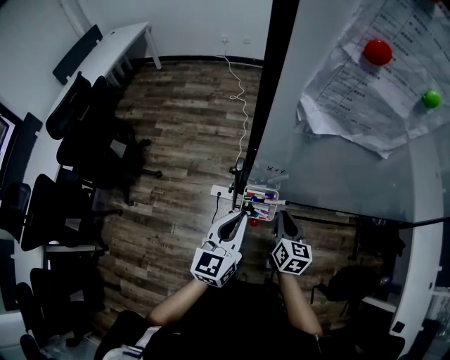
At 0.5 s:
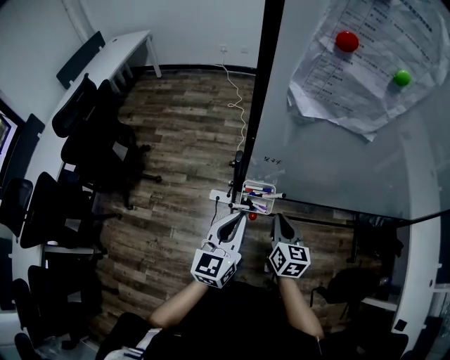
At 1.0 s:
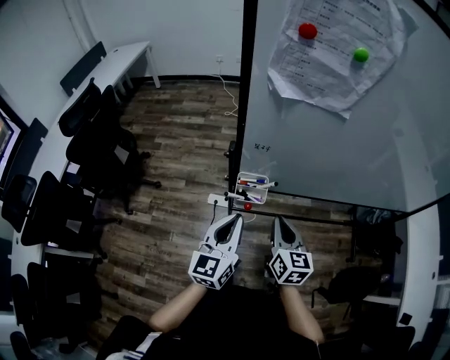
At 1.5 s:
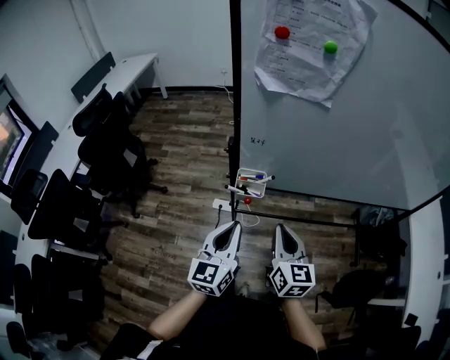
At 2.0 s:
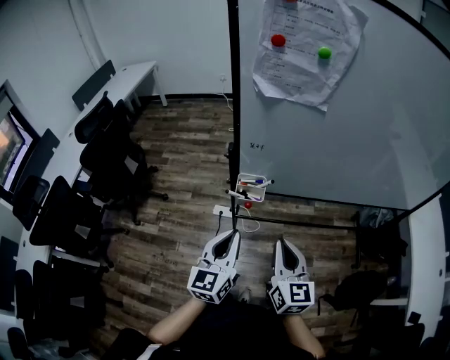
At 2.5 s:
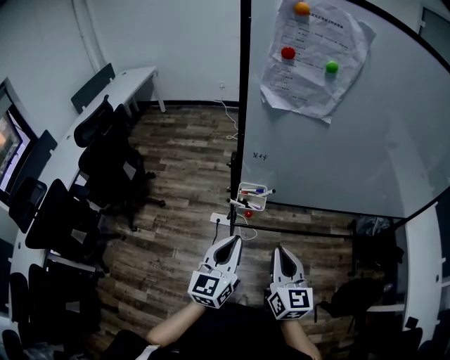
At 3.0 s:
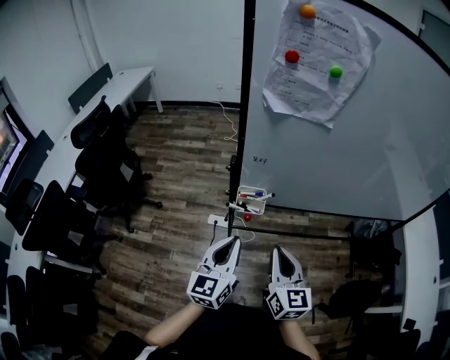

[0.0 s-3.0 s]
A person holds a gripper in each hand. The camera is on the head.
0.0 to 1.5 s: The right gripper goes approximately 20 cm backward and upward, while the left gripper is displaced backward by approximately 15 cm.
1.5 to 3.0 s: The grippers make only small movements.

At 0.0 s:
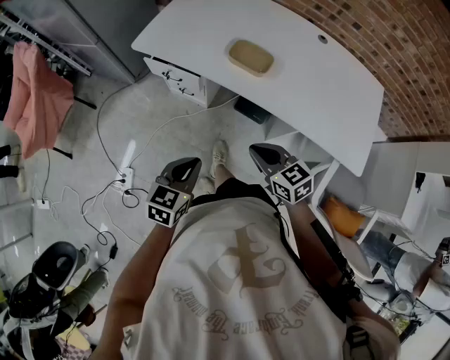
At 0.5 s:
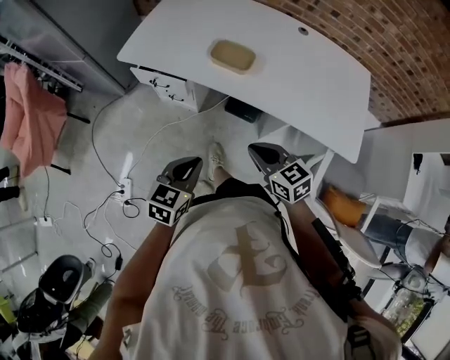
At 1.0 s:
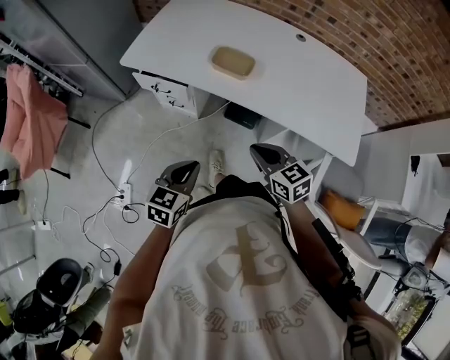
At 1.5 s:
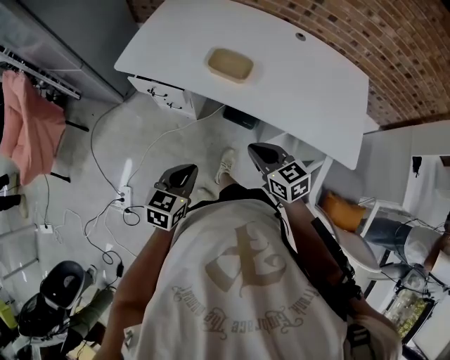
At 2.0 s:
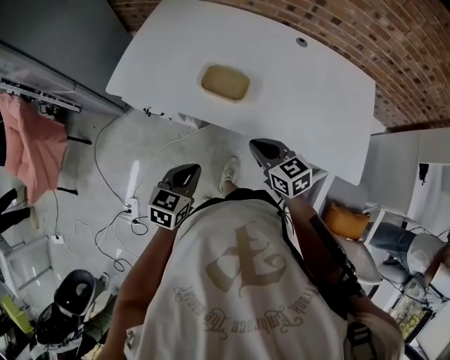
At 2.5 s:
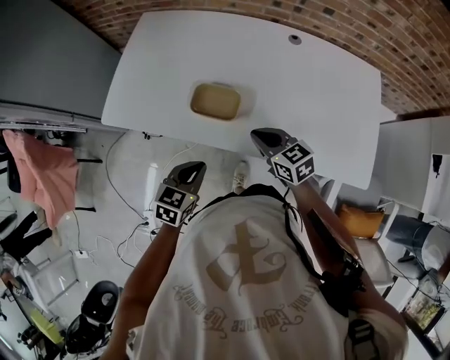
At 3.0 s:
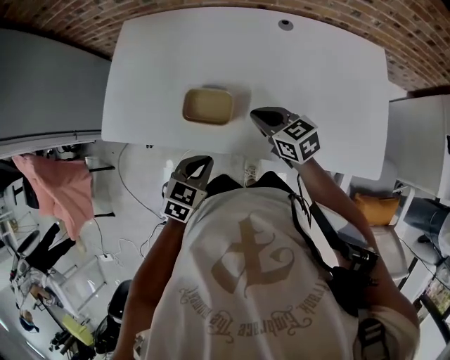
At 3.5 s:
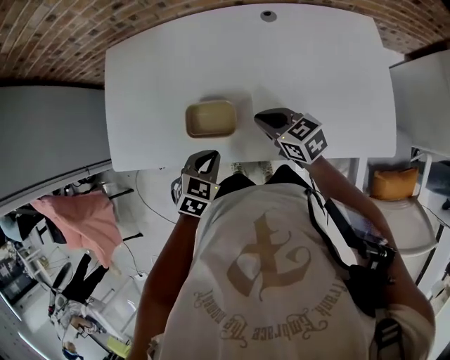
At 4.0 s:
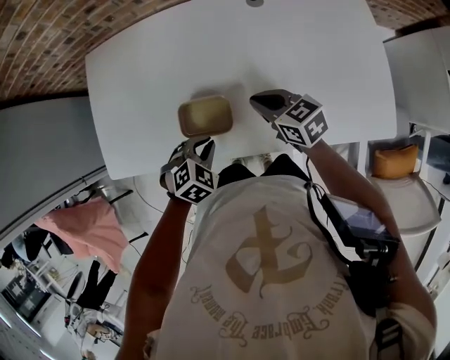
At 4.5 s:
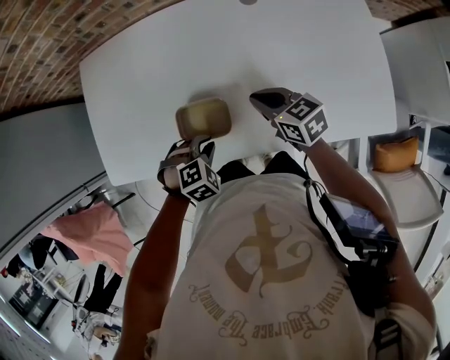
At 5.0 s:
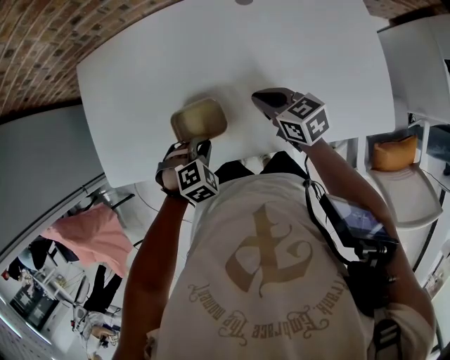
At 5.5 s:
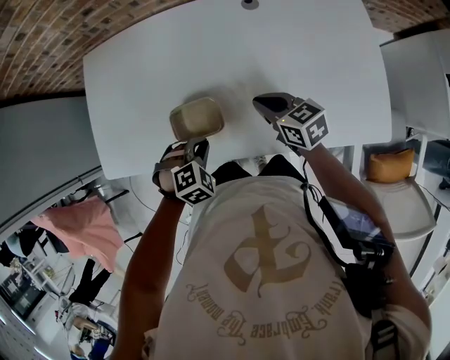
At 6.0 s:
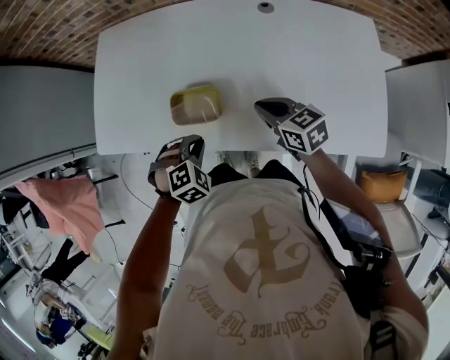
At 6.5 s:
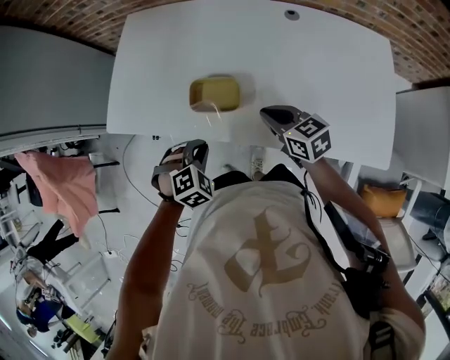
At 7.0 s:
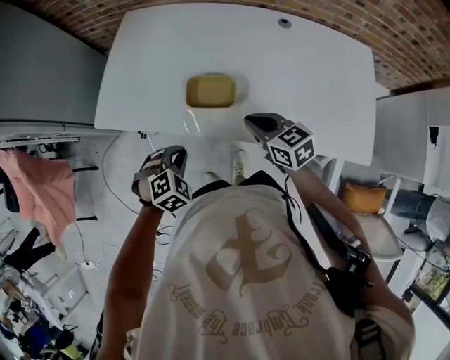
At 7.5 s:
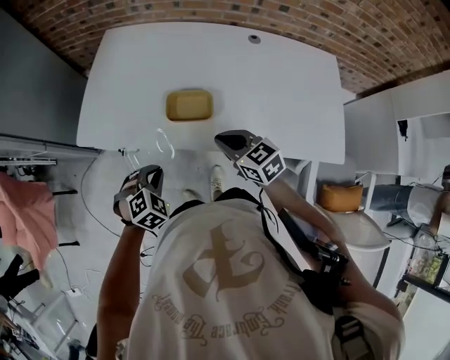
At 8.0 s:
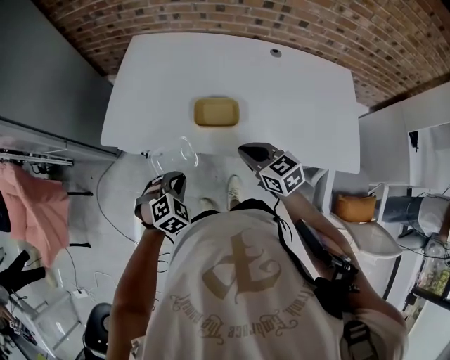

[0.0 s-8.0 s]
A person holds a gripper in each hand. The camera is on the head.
0.0 to 2.0 s: The grippers both shift forward and to the right by about 15 cm.
2.0 to 4.0 s: Both grippers move forward, approximately 20 cm. The left gripper rolls clockwise, seen from behind, by about 50 degrees.
4.0 to 6.0 s: The right gripper shifts by some 5 cm.
6.0 to 8.0 s: The grippers both shift to the left and backward by about 20 cm.

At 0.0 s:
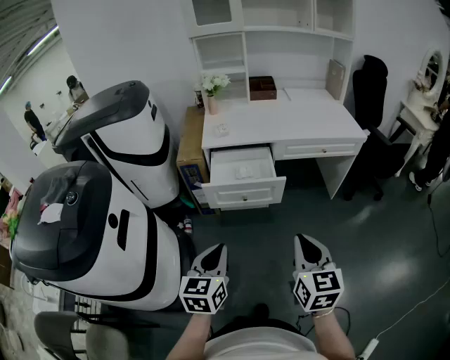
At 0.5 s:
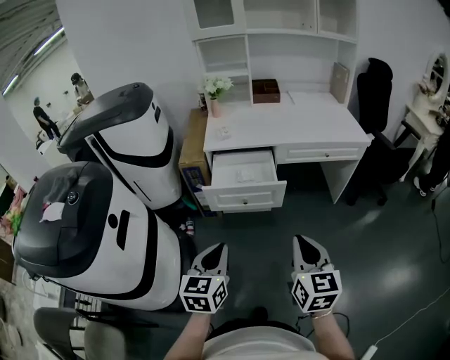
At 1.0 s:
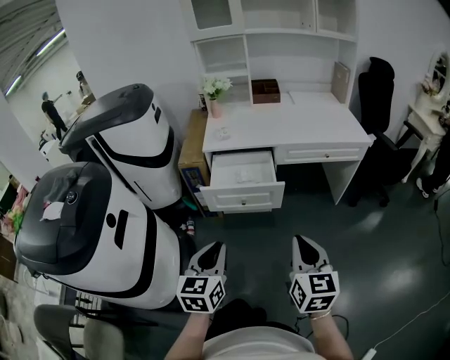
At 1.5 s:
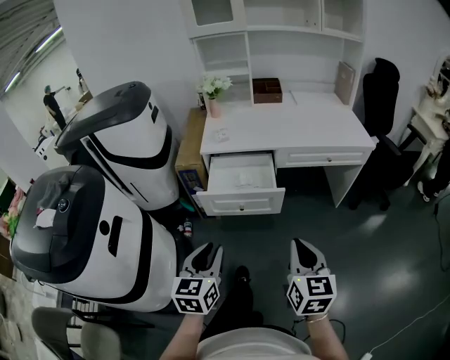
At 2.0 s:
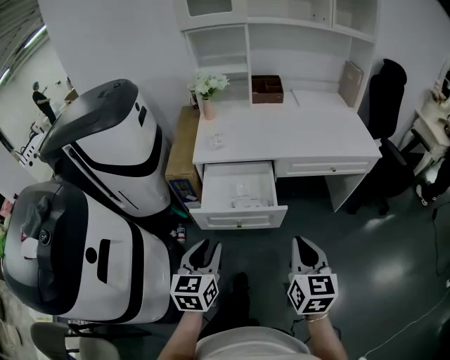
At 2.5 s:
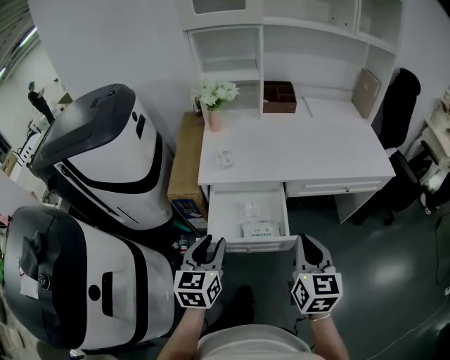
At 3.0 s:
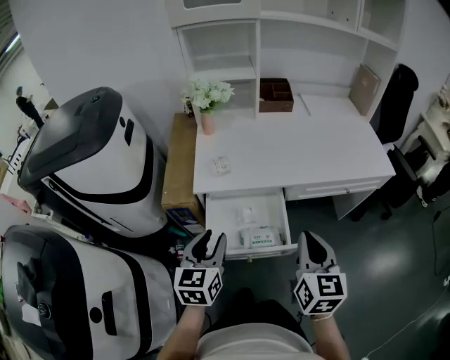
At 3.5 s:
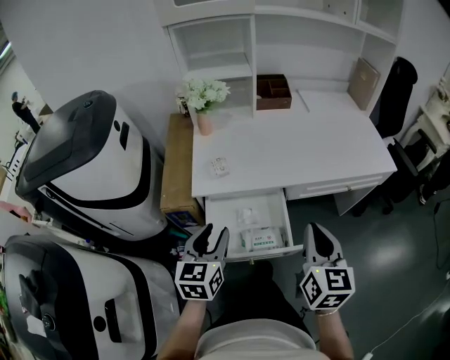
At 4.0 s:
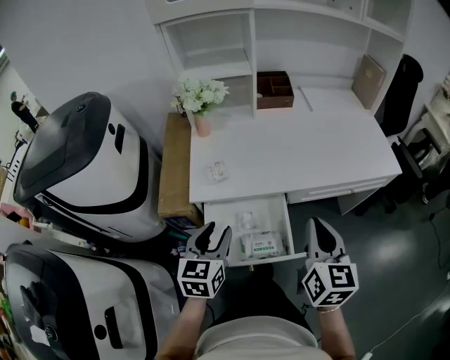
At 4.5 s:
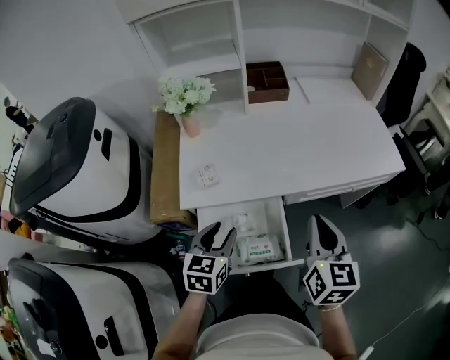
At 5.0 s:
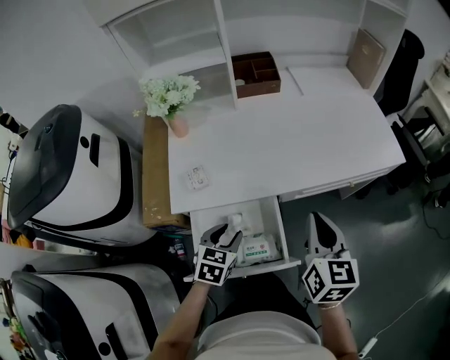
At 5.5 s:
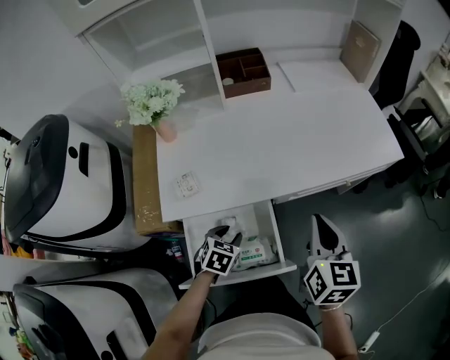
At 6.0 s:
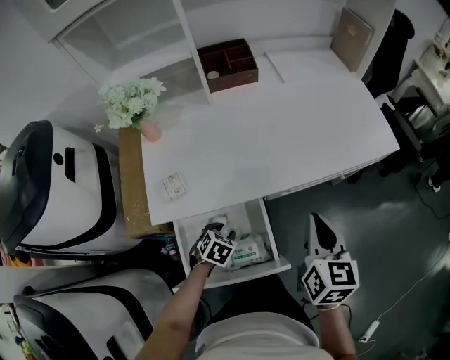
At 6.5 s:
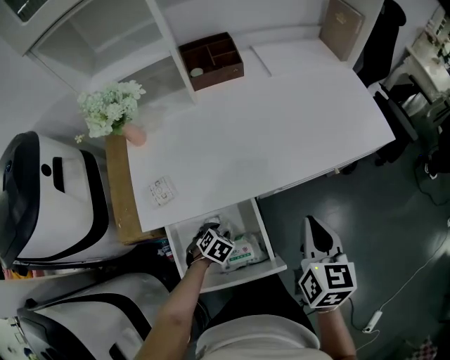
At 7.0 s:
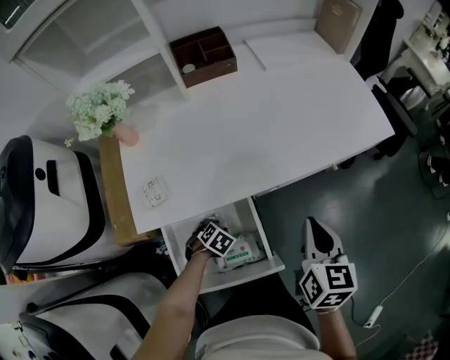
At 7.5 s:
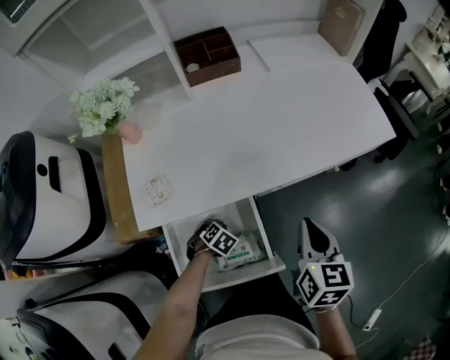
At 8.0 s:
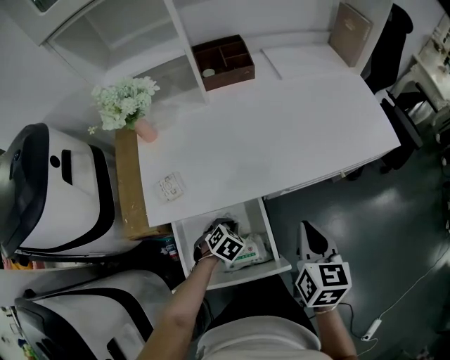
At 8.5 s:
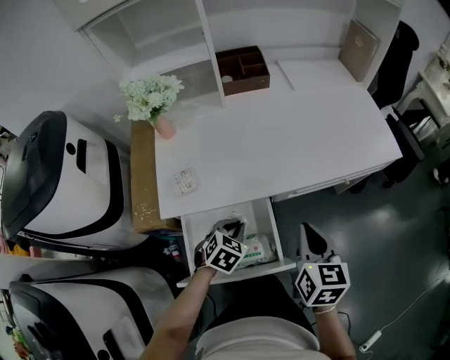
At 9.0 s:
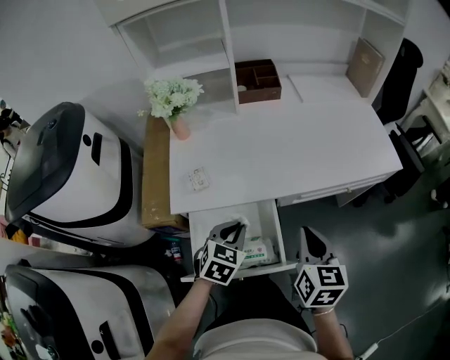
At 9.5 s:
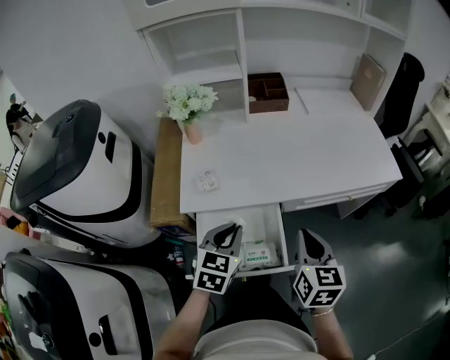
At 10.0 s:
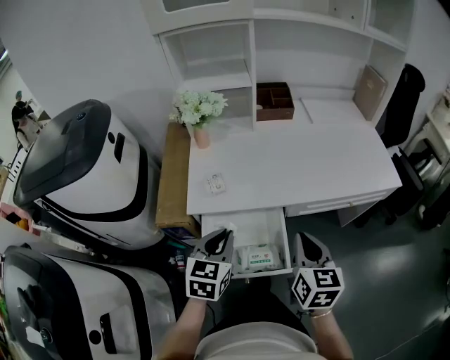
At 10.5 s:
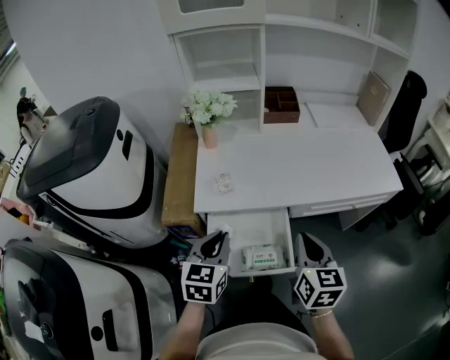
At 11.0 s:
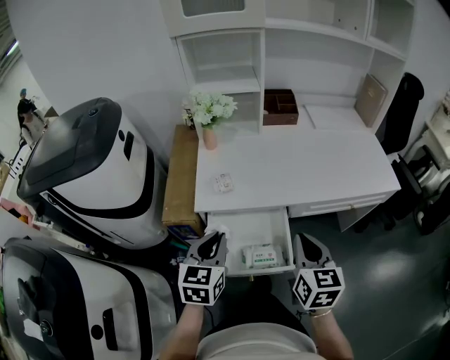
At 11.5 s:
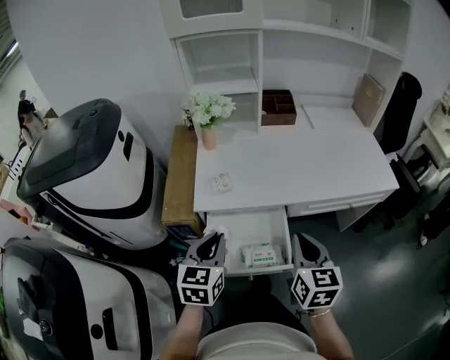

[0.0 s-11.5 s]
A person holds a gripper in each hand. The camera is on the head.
0.0 to 2.0 s: The two grippers go some 15 cm forward. The left gripper opens its fingers.
2.0 to 4.0 s: The two grippers go roughly 25 cm forward.
4.0 to 6.0 s: The left gripper moves downward, some 25 cm, and angles its fingers downward, by about 40 degrees, while the right gripper is displaced forward, to the right and downward by about 15 cm.
6.0 to 7.5 s: The left gripper is displaced downward by approximately 5 cm, and closes up.
7.5 to 9.5 s: The right gripper moves approximately 10 cm. Meanwhile the left gripper travels upward by some 30 cm, and points its fingers about 50 degrees further upward.
9.5 to 11.5 s: The left gripper is displaced to the left and backward by about 10 cm; the right gripper ends up about 5 cm from where it was.

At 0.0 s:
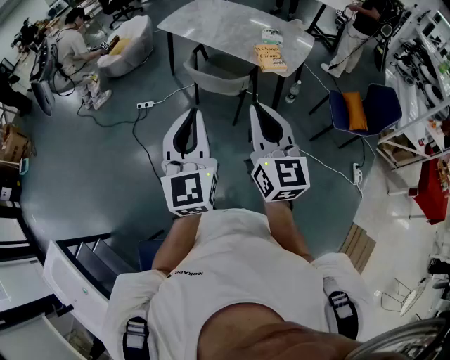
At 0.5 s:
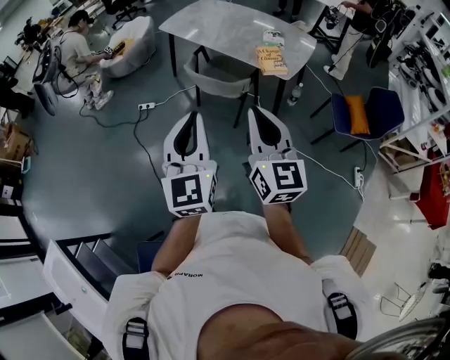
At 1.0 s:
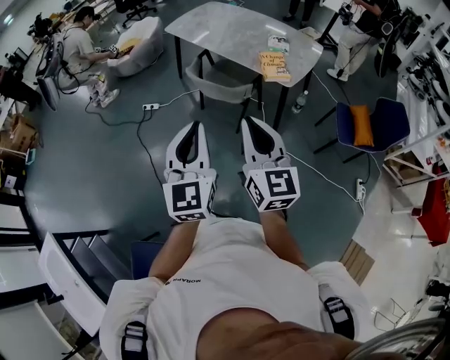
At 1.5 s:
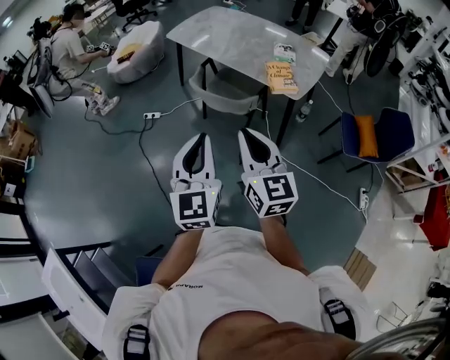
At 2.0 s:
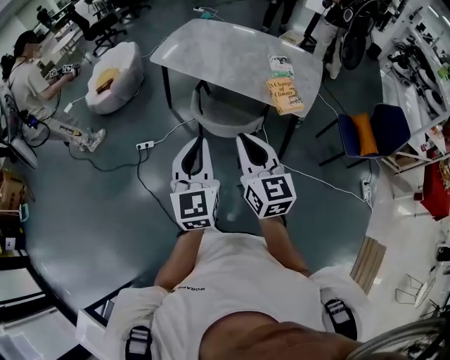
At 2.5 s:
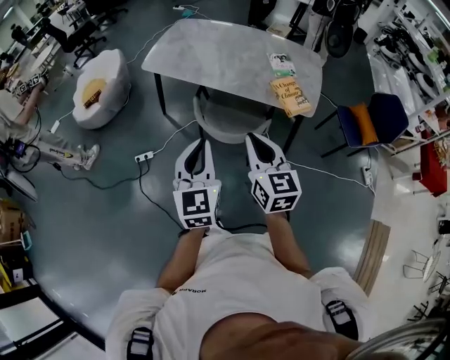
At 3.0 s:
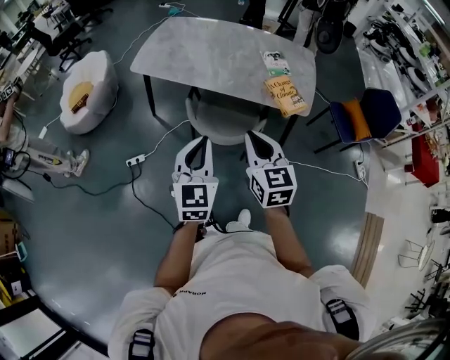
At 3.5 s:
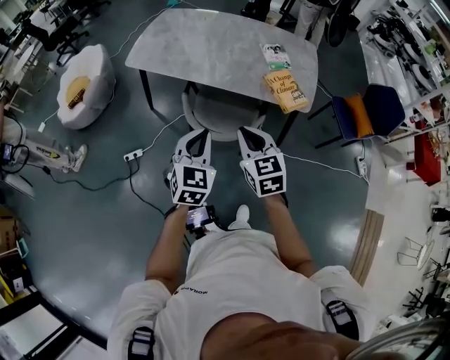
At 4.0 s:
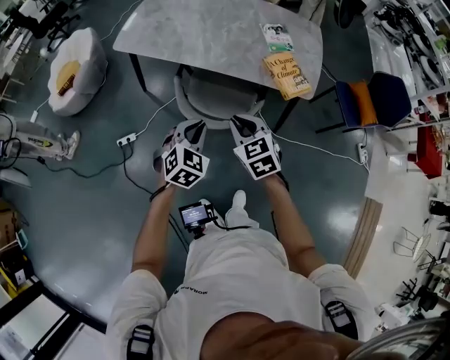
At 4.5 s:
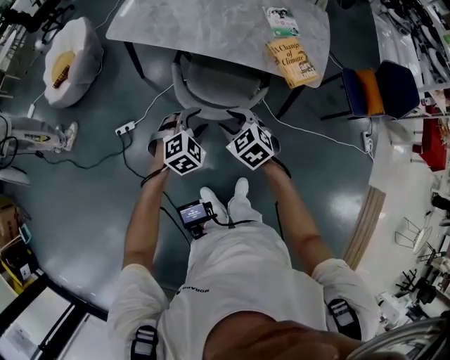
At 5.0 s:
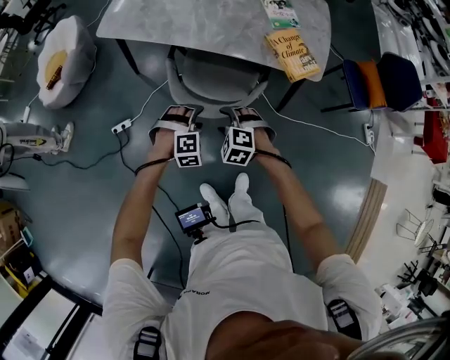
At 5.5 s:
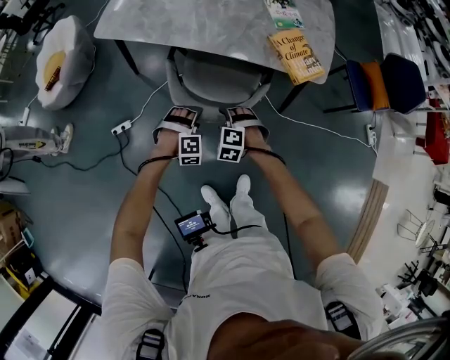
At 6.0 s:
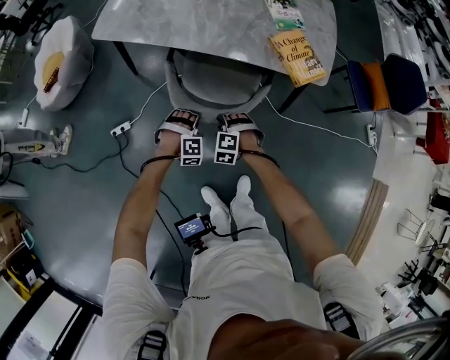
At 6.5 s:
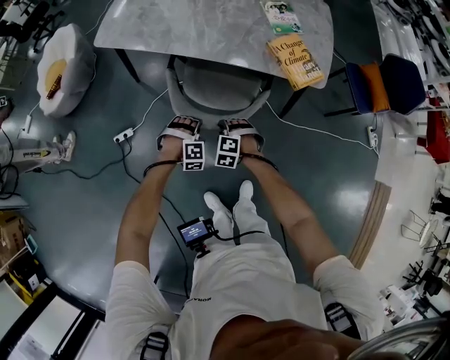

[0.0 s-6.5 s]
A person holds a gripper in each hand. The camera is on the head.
0.0 to 2.0 s: Both grippers travel together forward, about 30 cm.
2.0 to 4.5 s: Both grippers move downward and forward, approximately 40 cm. The right gripper tips its fingers downward by approximately 40 degrees, and opens its fingers, while the left gripper tips its fingers downward by about 50 degrees, and opens.
4.5 to 6.5 s: Both grippers travel together downward, some 20 cm. The left gripper twists roughly 40 degrees clockwise, seen from behind, and closes its fingers; the right gripper rotates about 40 degrees, and opens, then closes again.
